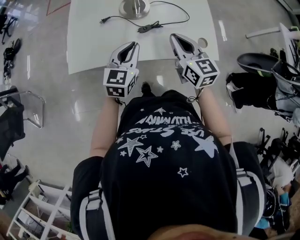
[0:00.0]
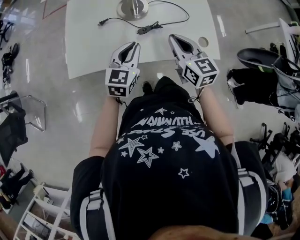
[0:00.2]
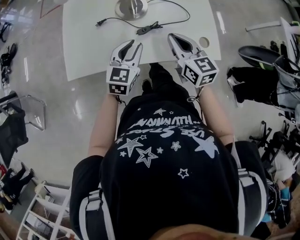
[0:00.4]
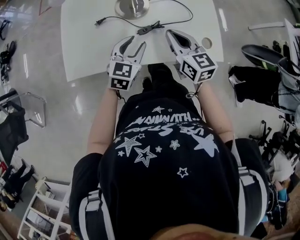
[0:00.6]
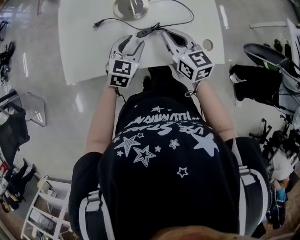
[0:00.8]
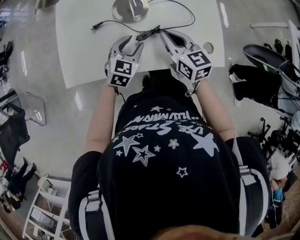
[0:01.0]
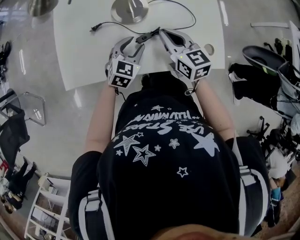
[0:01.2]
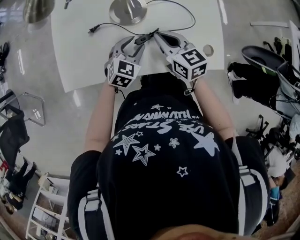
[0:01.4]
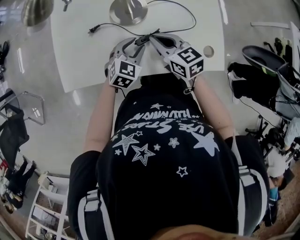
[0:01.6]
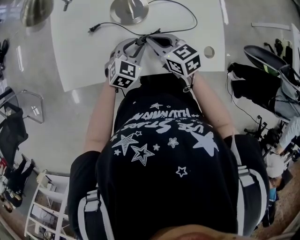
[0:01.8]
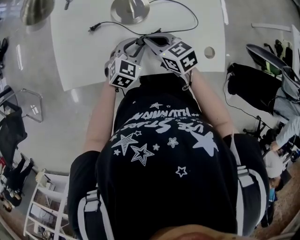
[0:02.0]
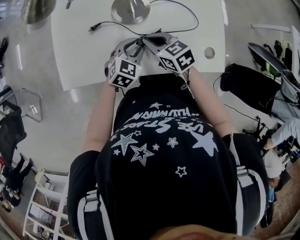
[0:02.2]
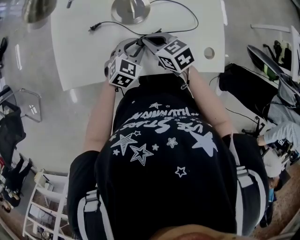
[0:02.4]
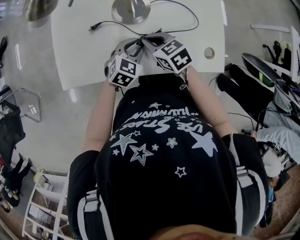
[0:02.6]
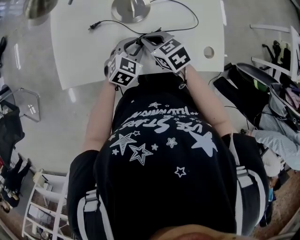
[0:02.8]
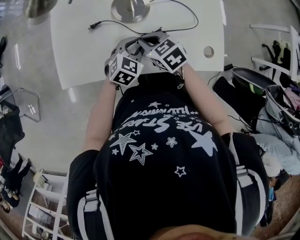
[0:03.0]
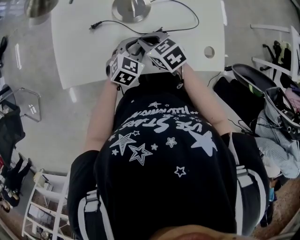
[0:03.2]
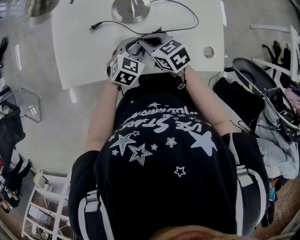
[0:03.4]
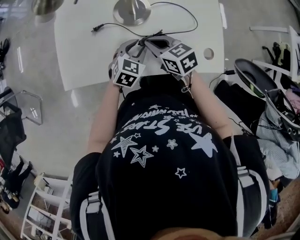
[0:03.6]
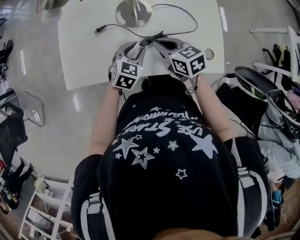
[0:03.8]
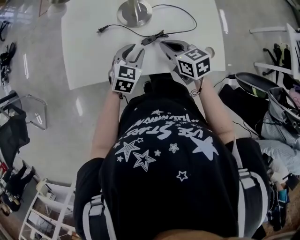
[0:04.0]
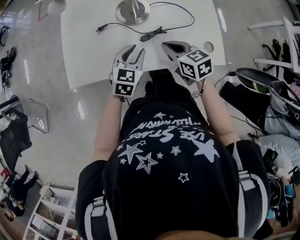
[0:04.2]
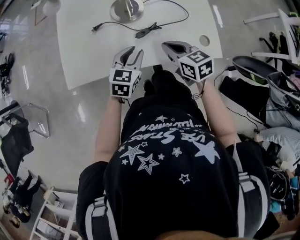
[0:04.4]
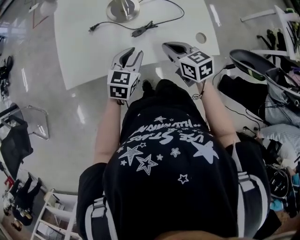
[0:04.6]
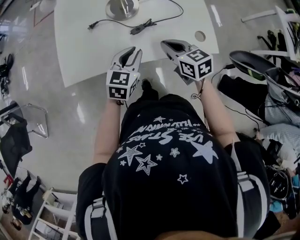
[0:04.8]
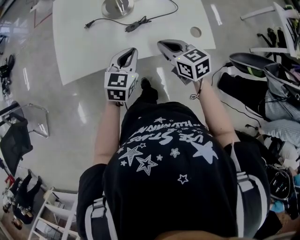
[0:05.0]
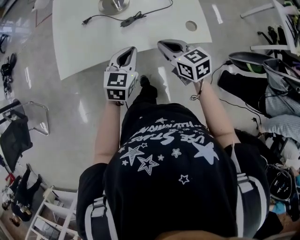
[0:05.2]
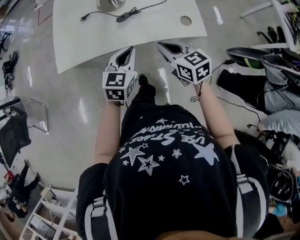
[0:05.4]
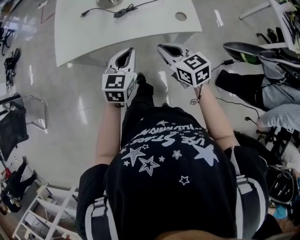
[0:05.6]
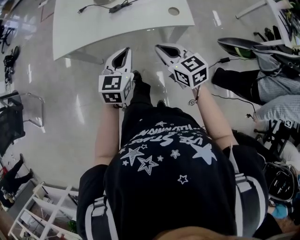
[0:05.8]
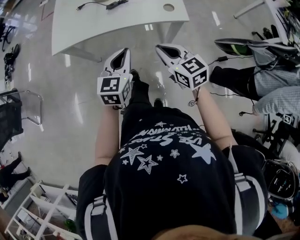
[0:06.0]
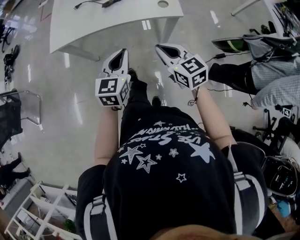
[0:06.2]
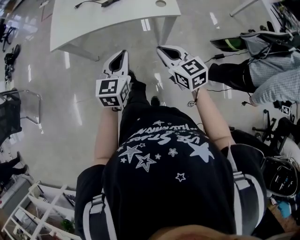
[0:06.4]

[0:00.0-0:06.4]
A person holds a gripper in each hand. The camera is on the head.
0:00.0 to 0:01.6: The left gripper travels downward and forward by about 15 cm, swivels roughly 30 degrees, and opens. Meanwhile the right gripper travels forward, downward and to the left by roughly 15 cm, and swivels roughly 20 degrees.
0:01.6 to 0:03.2: The right gripper shifts about 5 cm to the left, and turns by approximately 20 degrees.
0:03.2 to 0:04.8: The right gripper is displaced backward and to the right by roughly 15 cm, and rotates approximately 20 degrees. Meanwhile the left gripper travels backward and upward by roughly 10 cm.
0:04.8 to 0:06.4: Both grippers travel together backward, about 30 cm.

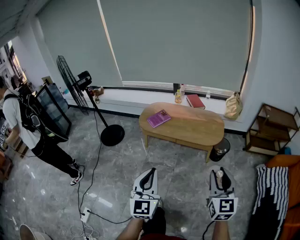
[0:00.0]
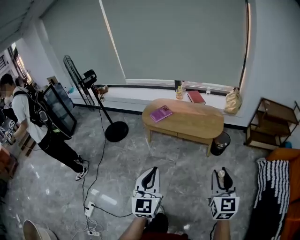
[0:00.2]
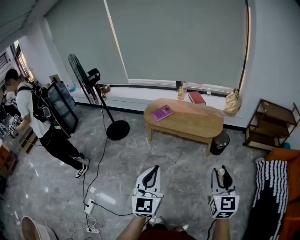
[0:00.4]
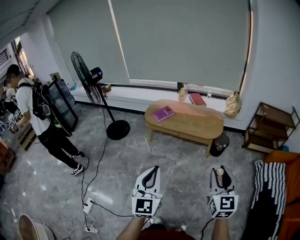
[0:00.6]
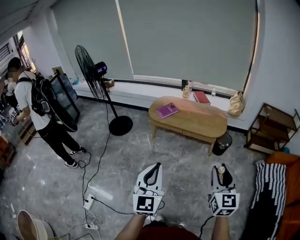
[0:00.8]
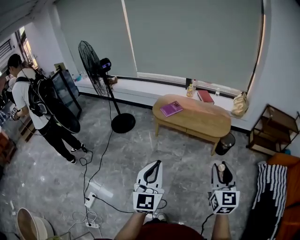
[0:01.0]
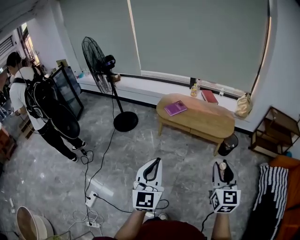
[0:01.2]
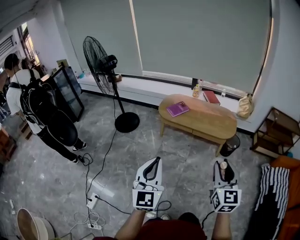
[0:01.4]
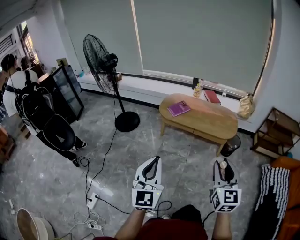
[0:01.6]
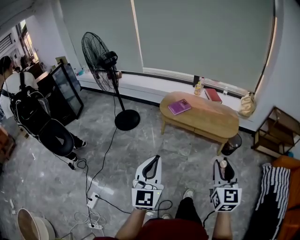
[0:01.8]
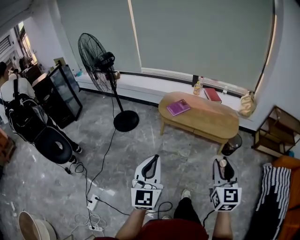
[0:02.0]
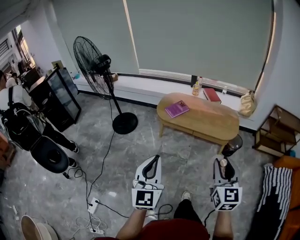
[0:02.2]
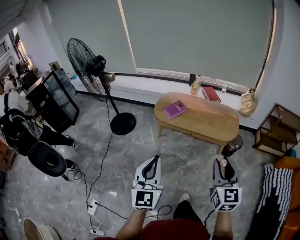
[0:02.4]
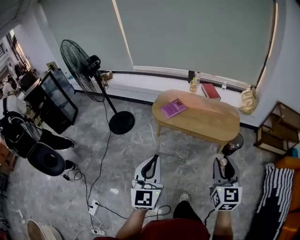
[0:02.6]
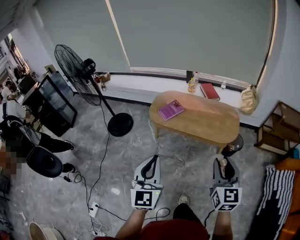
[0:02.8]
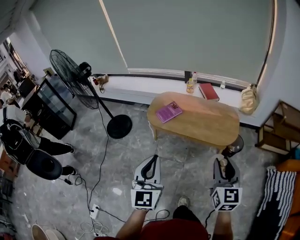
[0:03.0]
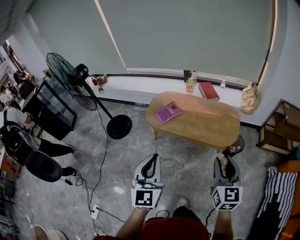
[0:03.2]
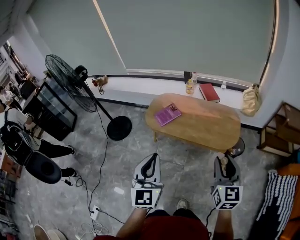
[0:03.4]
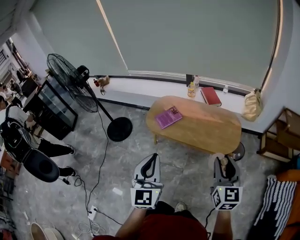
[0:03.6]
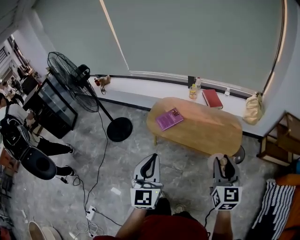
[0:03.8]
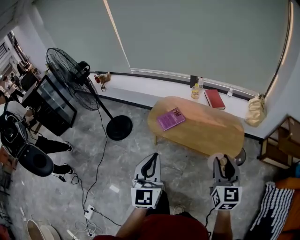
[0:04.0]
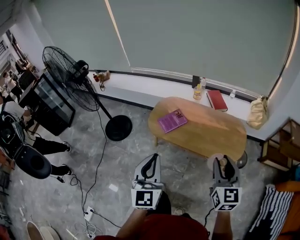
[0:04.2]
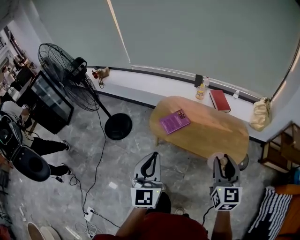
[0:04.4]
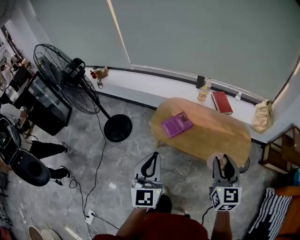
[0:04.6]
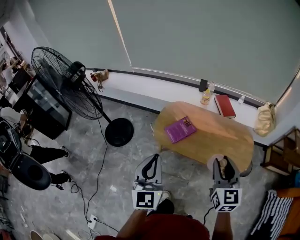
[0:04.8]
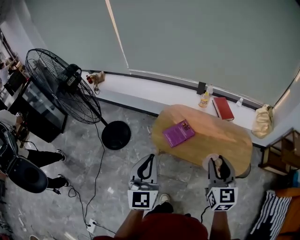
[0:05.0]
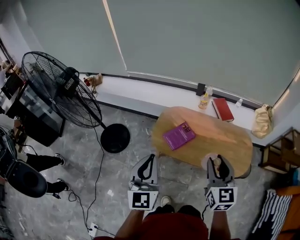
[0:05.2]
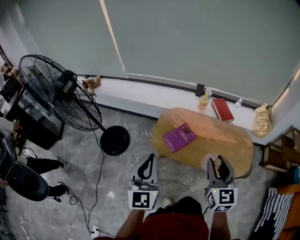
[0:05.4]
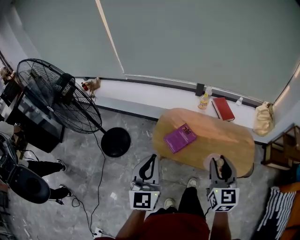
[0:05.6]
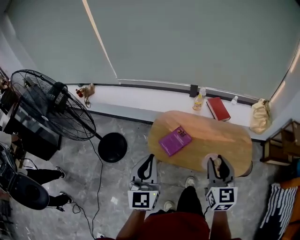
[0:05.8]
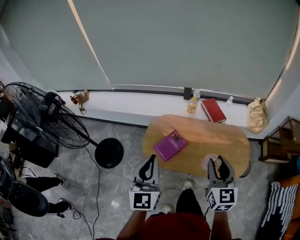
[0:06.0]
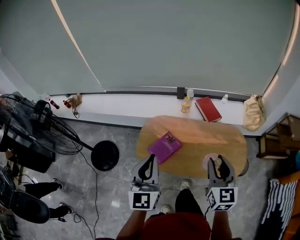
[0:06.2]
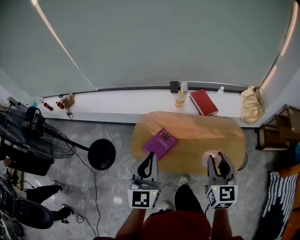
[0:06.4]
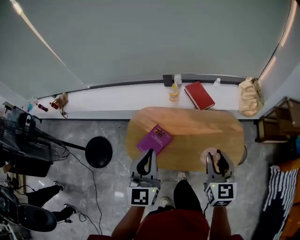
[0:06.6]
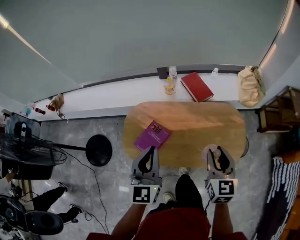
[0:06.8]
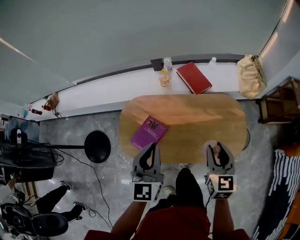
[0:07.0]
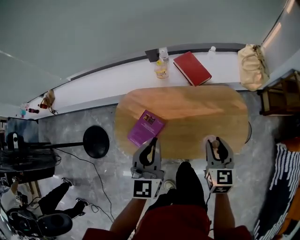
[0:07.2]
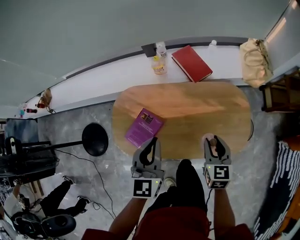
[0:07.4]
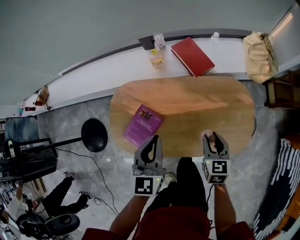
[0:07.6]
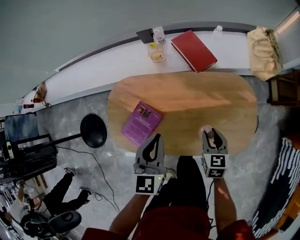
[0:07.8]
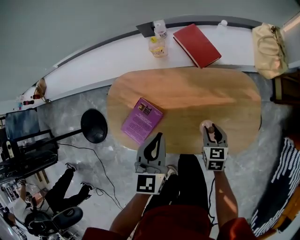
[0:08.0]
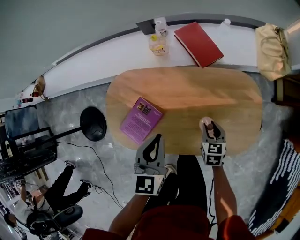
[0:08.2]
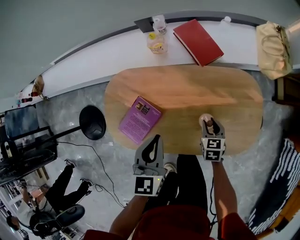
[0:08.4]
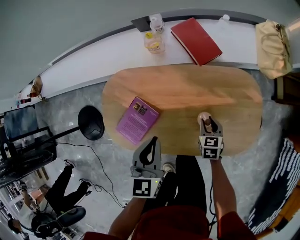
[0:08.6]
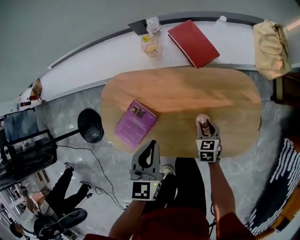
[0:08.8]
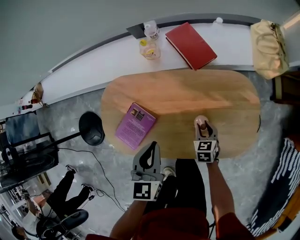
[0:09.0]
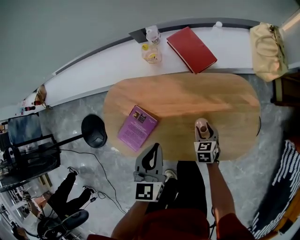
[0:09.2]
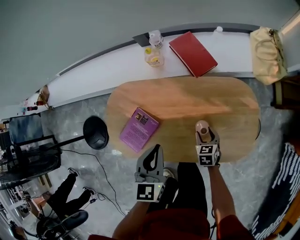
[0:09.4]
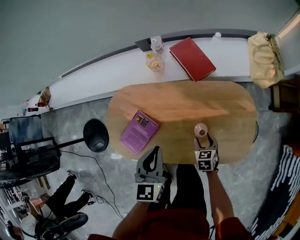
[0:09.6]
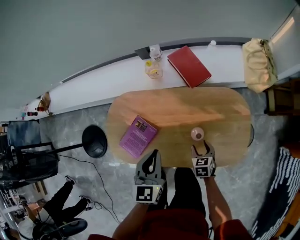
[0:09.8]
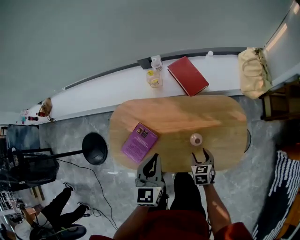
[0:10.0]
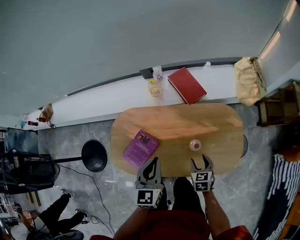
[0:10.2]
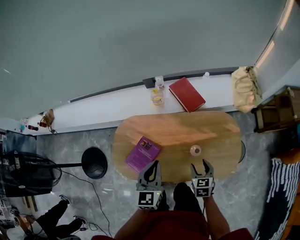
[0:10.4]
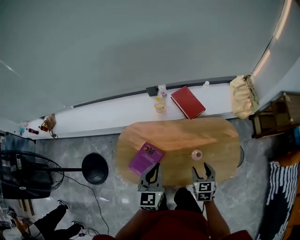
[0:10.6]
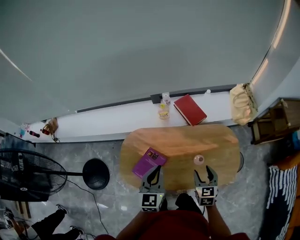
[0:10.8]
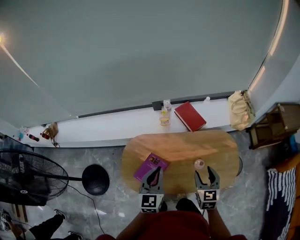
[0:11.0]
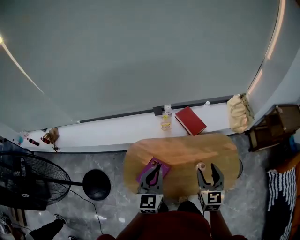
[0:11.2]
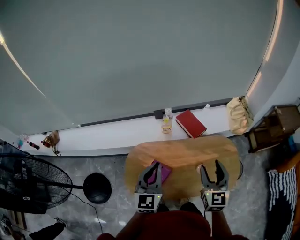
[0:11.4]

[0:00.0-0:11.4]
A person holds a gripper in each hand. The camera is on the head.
0:00.0 to 0:01.4: The grippers both shift to the left and backward by some 20 cm.
0:01.4 to 0:02.8: Both grippers travel together forward, approximately 25 cm.
0:02.8 to 0:04.2: The grippers both shift forward by some 20 cm.
0:04.2 to 0:05.6: Both grippers move forward and to the left, approximately 25 cm.
0:05.6 to 0:07.2: The grippers both shift forward, to the right and downward by some 40 cm. The right gripper changes its angle by about 30 degrees; the left gripper rotates about 30 degrees.
0:07.2 to 0:08.6: The left gripper goes about 15 cm downward; the right gripper travels downward by approximately 30 cm, and rotates roughly 20 degrees.
0:08.6 to 0:10.0: The left gripper shifts about 5 cm upward, while the right gripper shifts approximately 10 cm backward and upward, and opens up.
0:10.0 to 0:11.4: The right gripper travels upward by roughly 40 cm, and tilts its fingers approximately 40 degrees upward. Meanwhile the left gripper heads upward and to the left, covering some 25 cm, and turns by roughly 20 degrees.

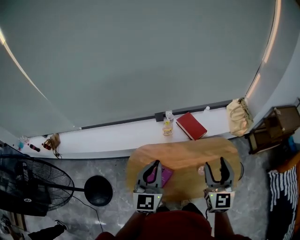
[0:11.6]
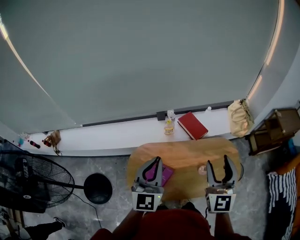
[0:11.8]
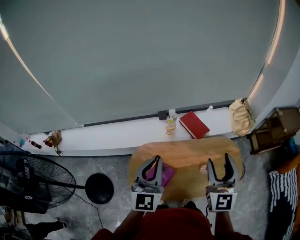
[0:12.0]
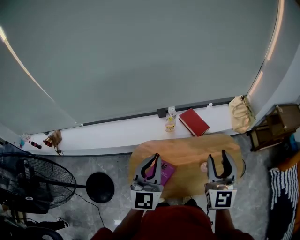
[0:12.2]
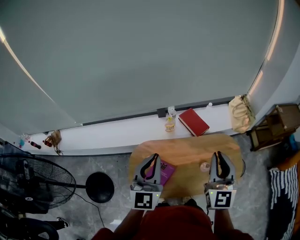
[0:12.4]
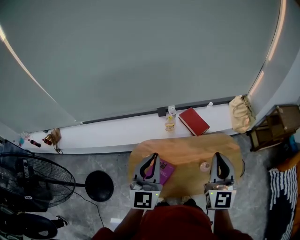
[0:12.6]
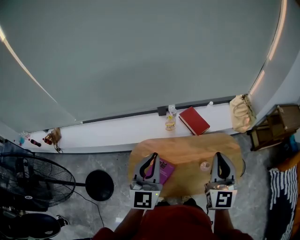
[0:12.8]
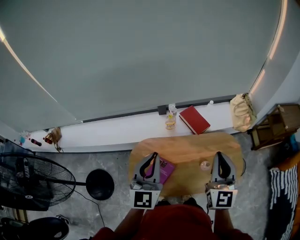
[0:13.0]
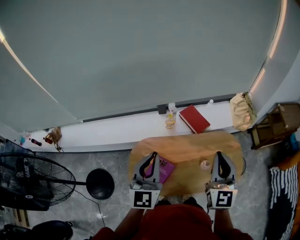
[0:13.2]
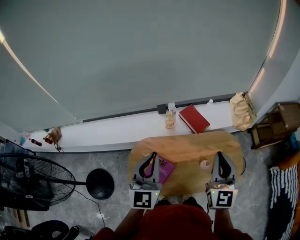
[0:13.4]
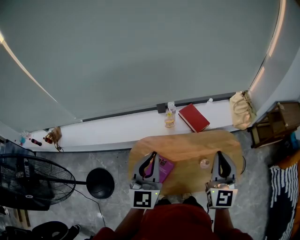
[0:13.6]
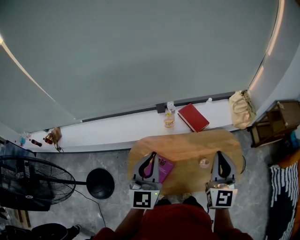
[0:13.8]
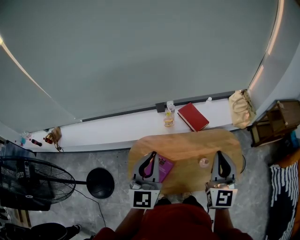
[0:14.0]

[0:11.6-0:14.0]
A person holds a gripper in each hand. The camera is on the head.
0:11.6 to 0:12.8: The right gripper closes.
0:12.8 to 0:14.0: There are only small adjustments of the grippers.

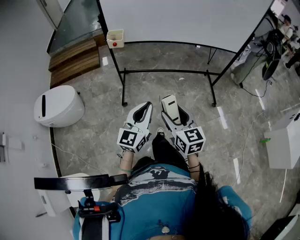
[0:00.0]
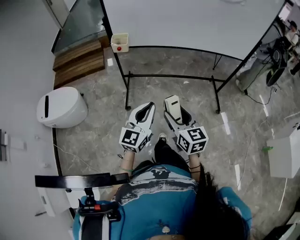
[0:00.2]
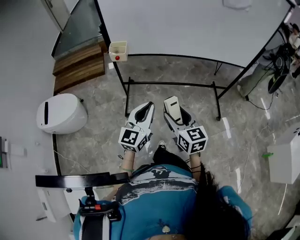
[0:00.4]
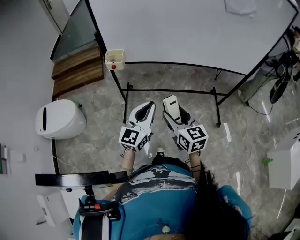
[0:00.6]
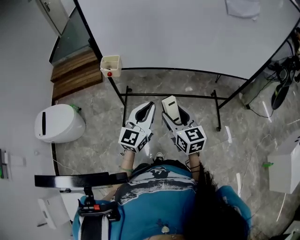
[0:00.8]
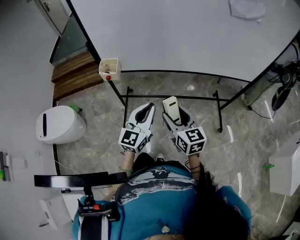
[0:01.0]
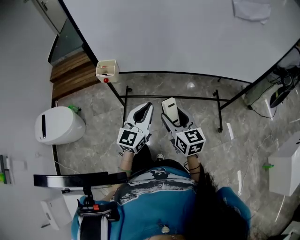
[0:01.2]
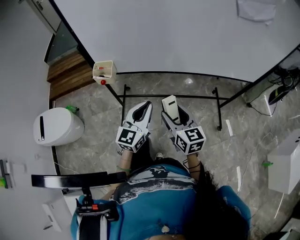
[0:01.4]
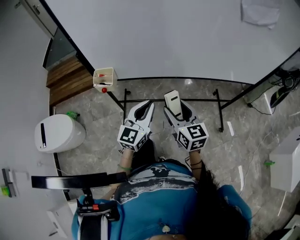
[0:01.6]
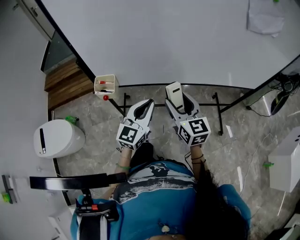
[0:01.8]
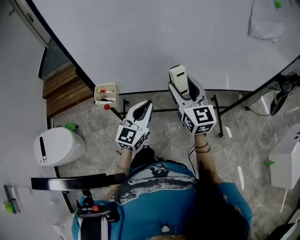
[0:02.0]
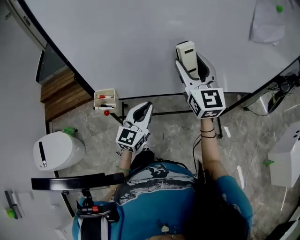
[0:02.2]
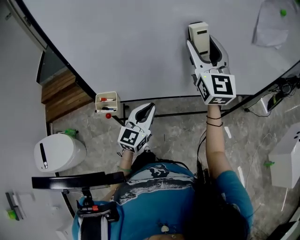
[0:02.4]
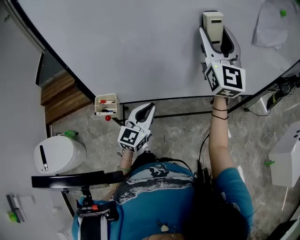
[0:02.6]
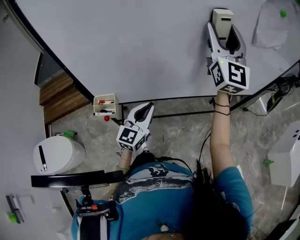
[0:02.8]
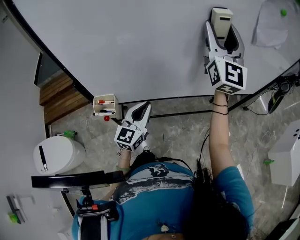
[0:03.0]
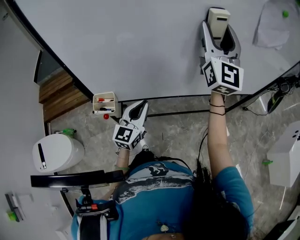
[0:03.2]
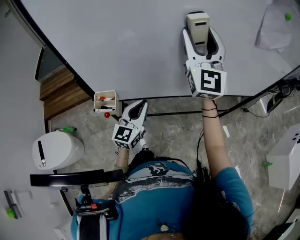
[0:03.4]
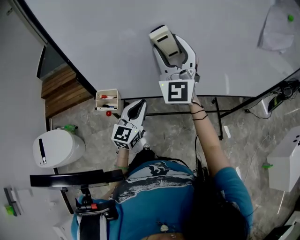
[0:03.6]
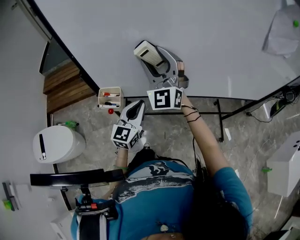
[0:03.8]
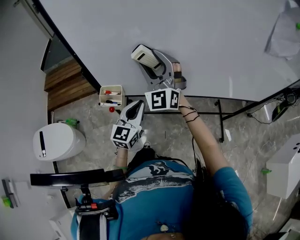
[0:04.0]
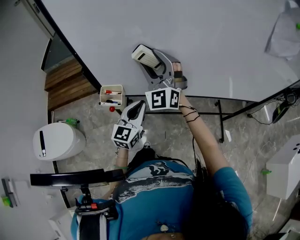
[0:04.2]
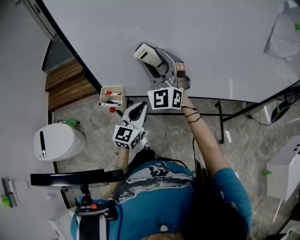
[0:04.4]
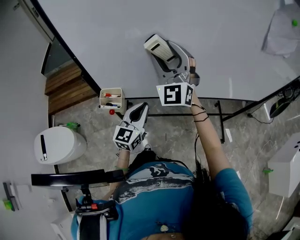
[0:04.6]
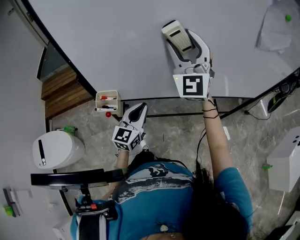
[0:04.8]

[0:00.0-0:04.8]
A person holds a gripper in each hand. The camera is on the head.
0:00.0 to 0:01.6: The pair of grippers is taken forward, about 40 cm.
0:01.6 to 0:03.2: The left gripper is displaced forward and to the left by about 10 cm. The right gripper heads upward and forward, covering some 40 cm, and tilts its fingers about 40 degrees upward.
0:03.2 to 0:04.8: The right gripper shifts some 15 cm to the left and downward, and swivels roughly 30 degrees.
